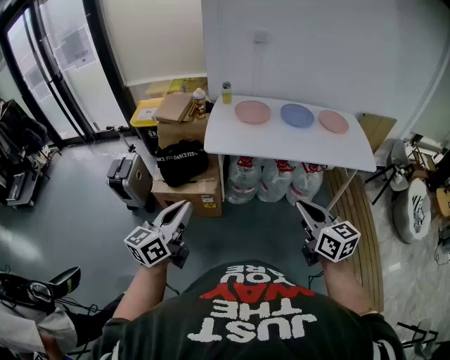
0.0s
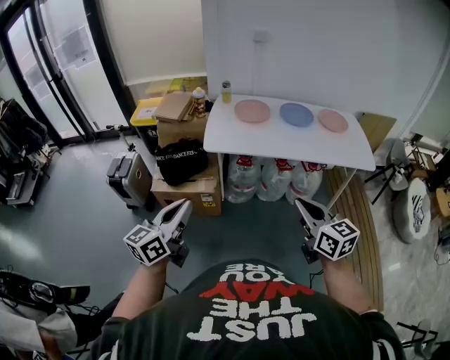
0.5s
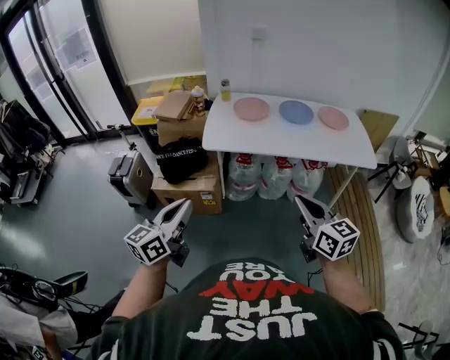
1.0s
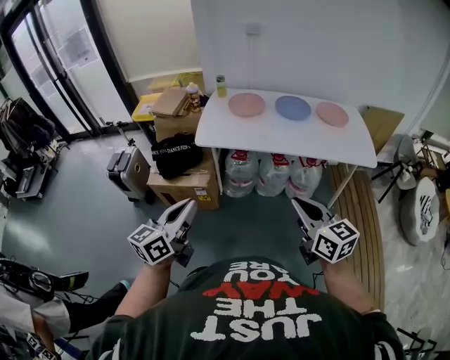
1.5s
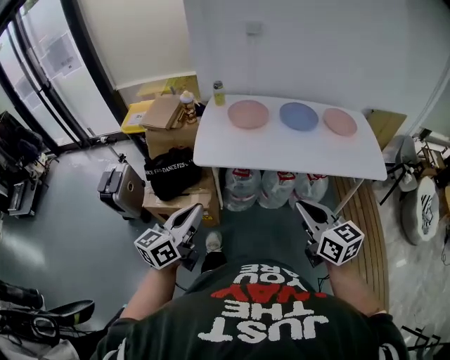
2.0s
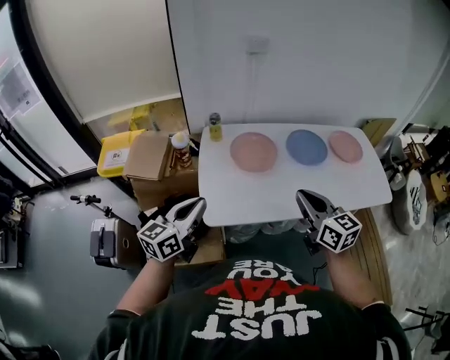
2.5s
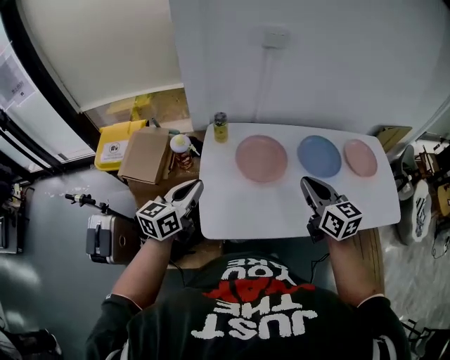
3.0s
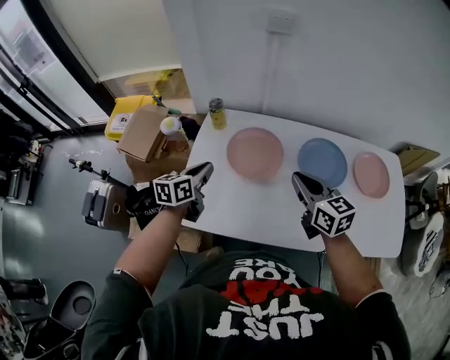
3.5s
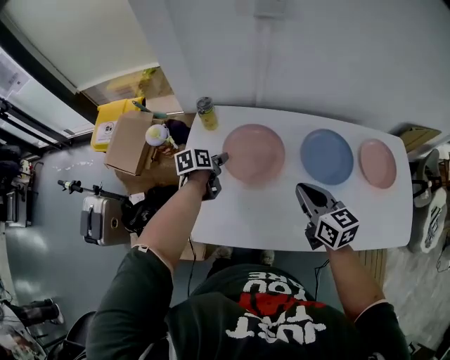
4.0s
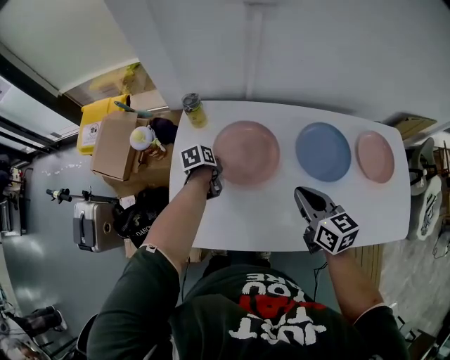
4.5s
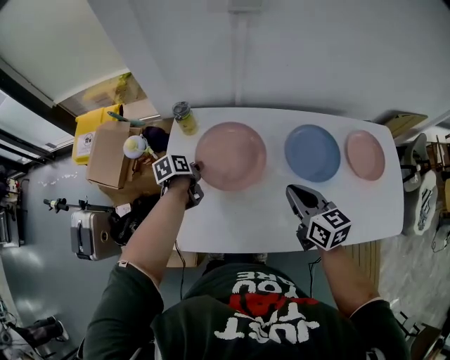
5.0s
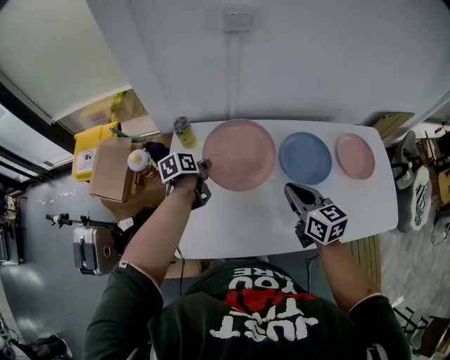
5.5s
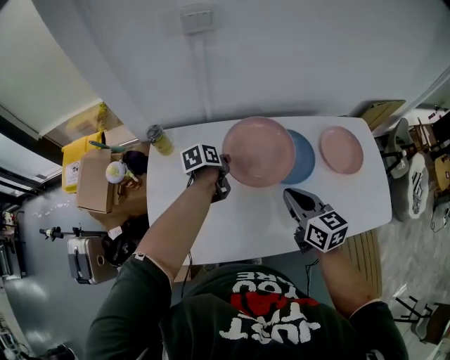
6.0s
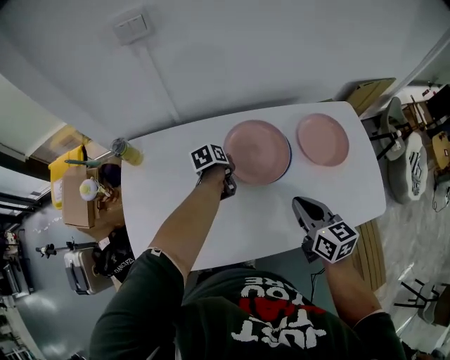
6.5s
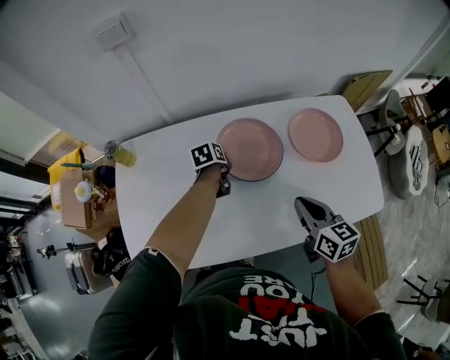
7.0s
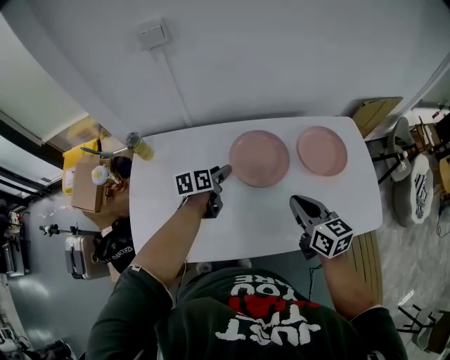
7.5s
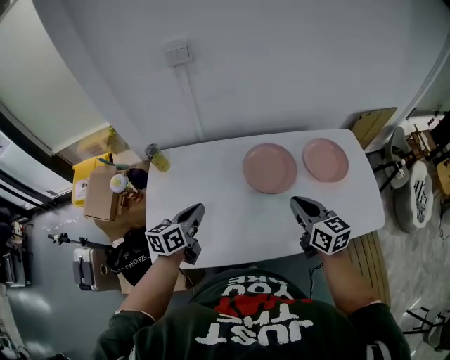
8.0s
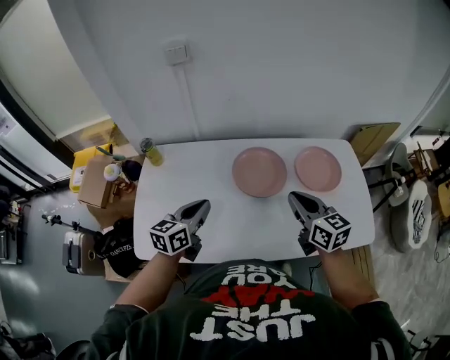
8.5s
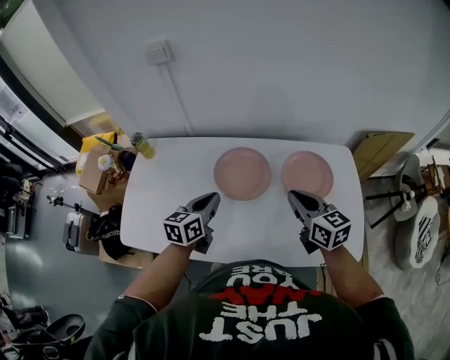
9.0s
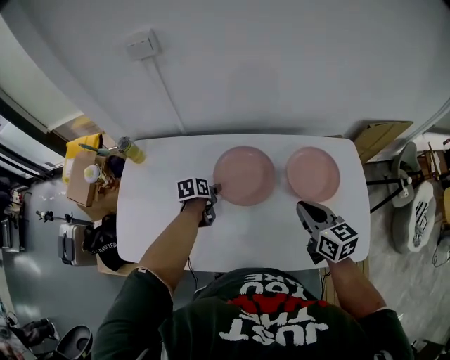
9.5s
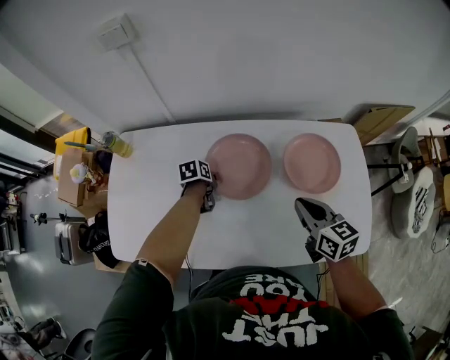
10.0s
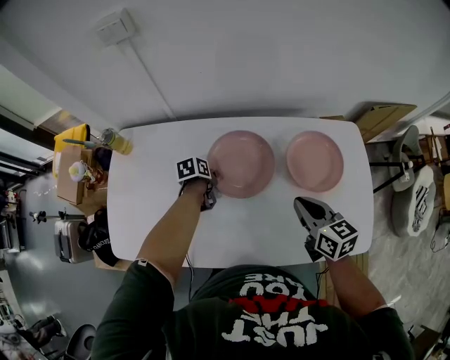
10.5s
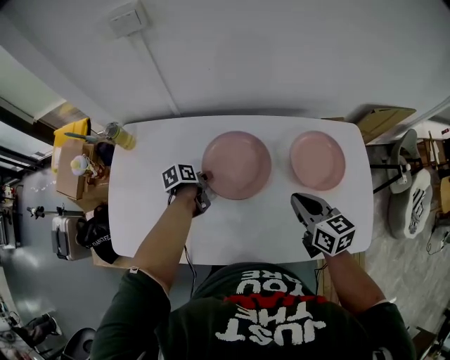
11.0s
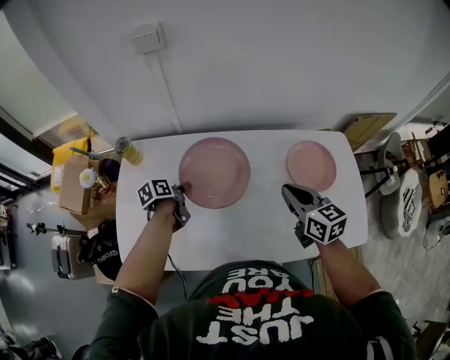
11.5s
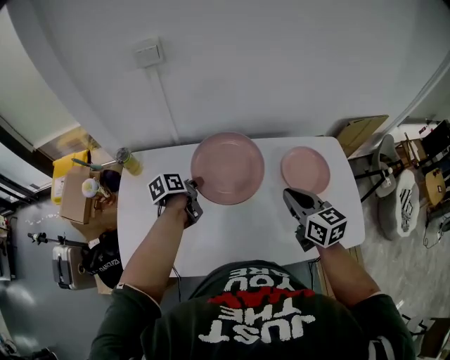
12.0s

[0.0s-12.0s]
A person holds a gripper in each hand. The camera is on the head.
0.0s to 2.0s: The left gripper heads forward and to the right, covering about 15 cm. Meanwhile the right gripper travels forward by roughly 15 cm.
2.0s to 4.0s: The two grippers travel together, forward, roughly 60 cm. The left gripper moves downward, about 25 cm, tilts its fingers roughly 40 degrees downward, and opens up.
4.0s to 6.0s: The right gripper is displaced to the right by about 10 cm. The left gripper travels to the right by some 15 cm.
6.0s to 8.0s: The left gripper moves backward and upward, approximately 20 cm, rotates about 30 degrees, and opens, then closes once more; the right gripper heads to the right, covering about 10 cm.
8.0s to 10.0s: The right gripper shifts approximately 20 cm to the right and forward, while the left gripper goes about 30 cm downward, to the right and forward, points its fingers about 40 degrees further downward, and opens up.
10.0s to 12.0s: The right gripper is displaced to the left and upward by some 10 cm. The left gripper shifts some 15 cm upward and to the left, and swivels approximately 30 degrees.

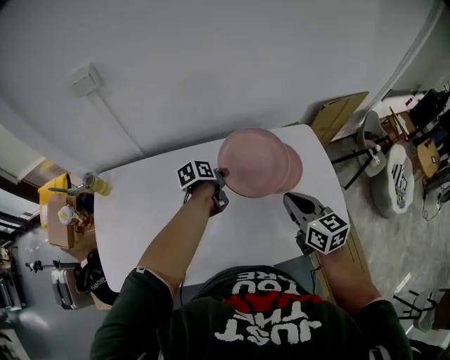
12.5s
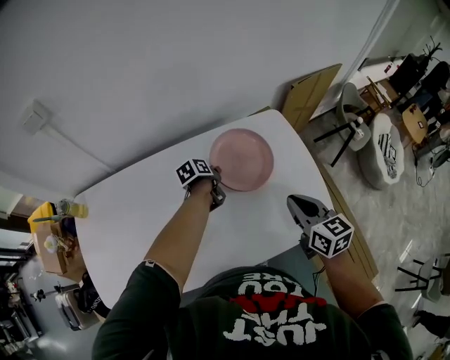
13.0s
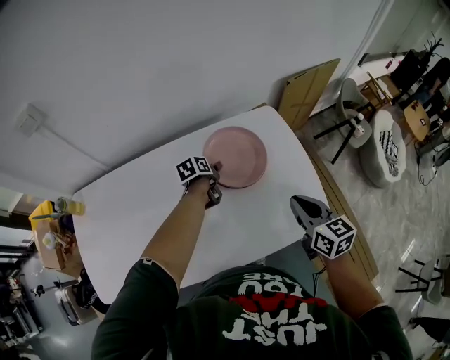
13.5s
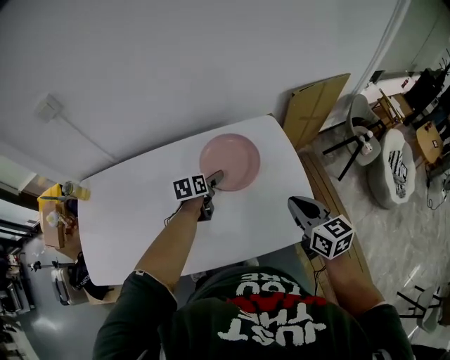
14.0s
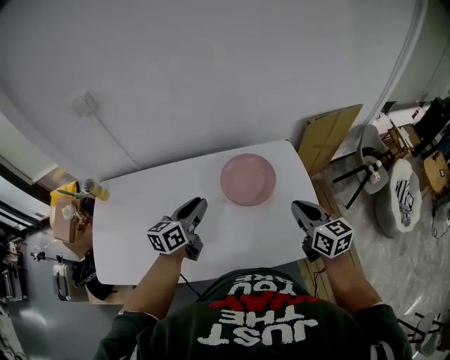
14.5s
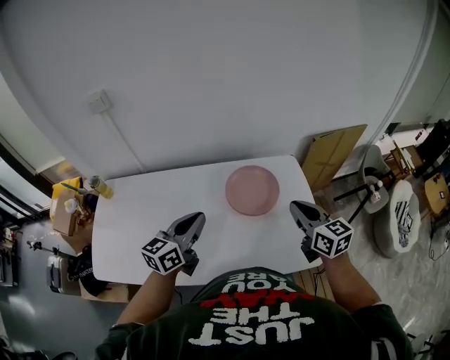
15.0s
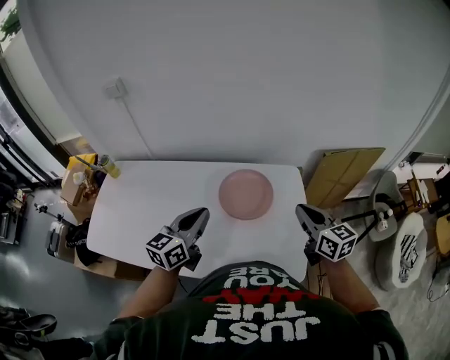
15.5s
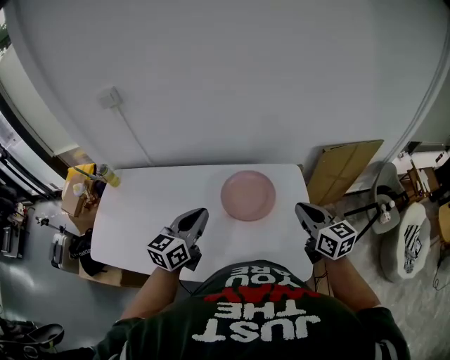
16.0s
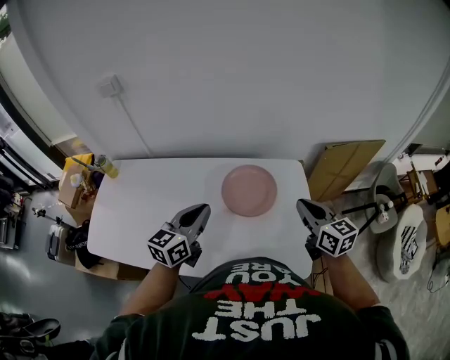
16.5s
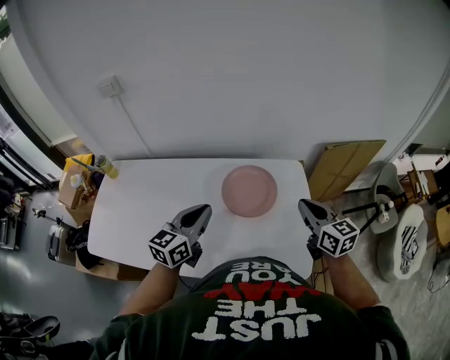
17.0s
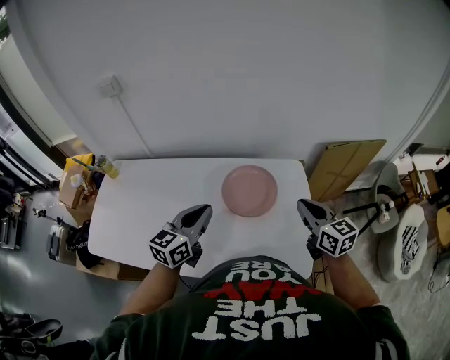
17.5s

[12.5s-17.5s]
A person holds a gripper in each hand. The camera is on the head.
12.5s to 15.0s: The left gripper shifts about 25 cm upward and backward, angles its fingers upward, by some 30 degrees, and opens and closes again. The right gripper is displaced to the right by approximately 15 cm.
15.0s to 17.5s: The two grippers go about 5 cm to the right.

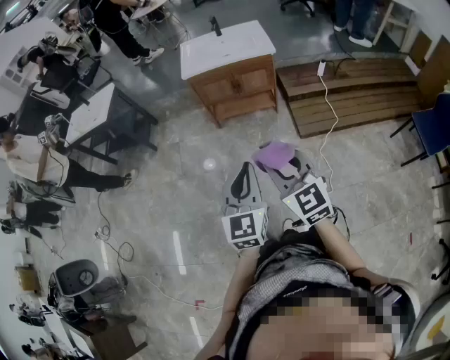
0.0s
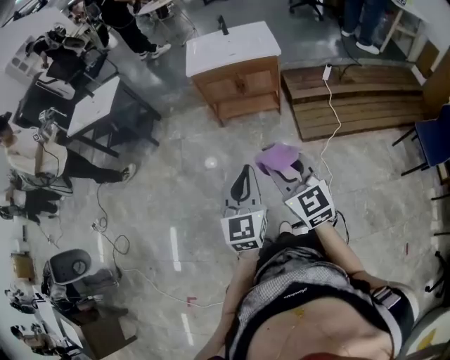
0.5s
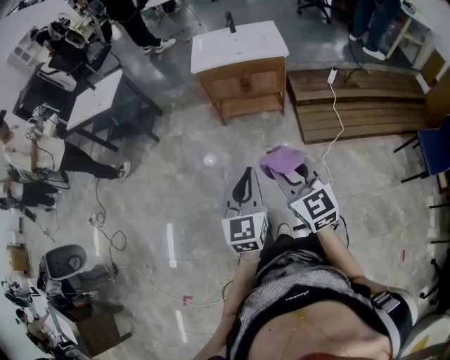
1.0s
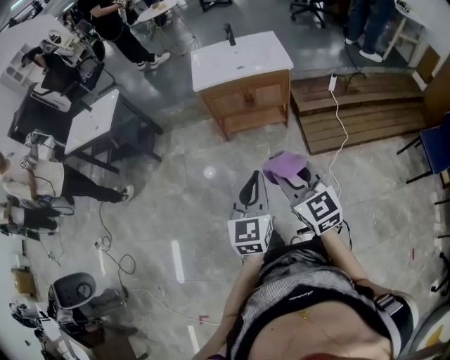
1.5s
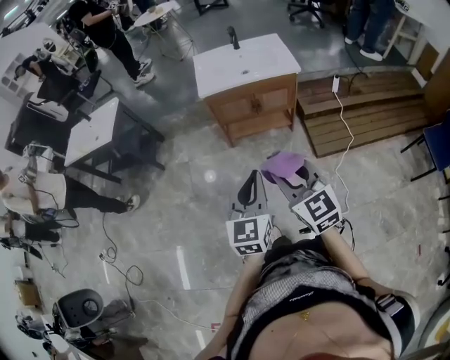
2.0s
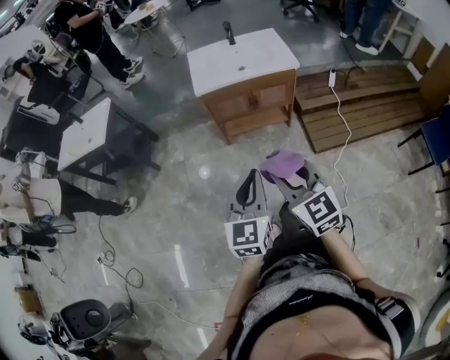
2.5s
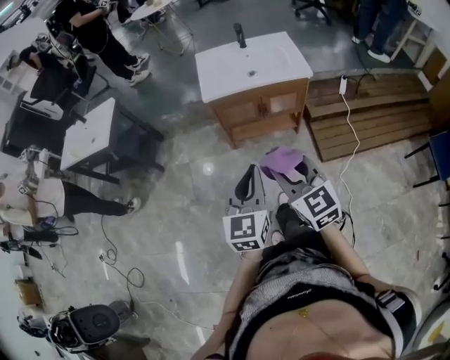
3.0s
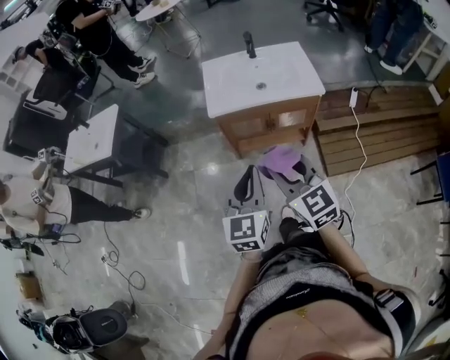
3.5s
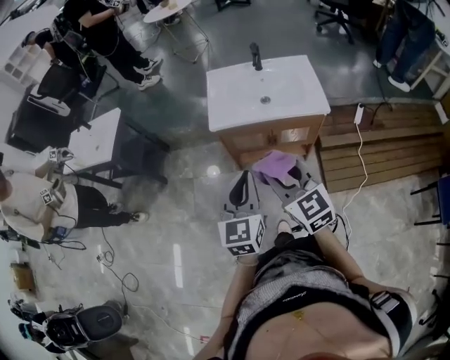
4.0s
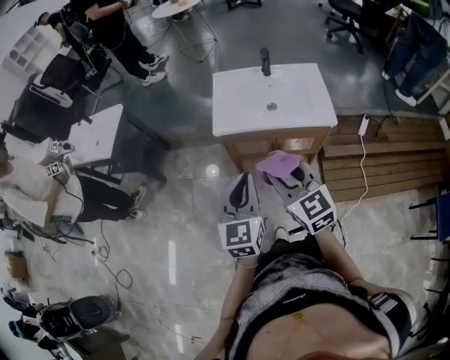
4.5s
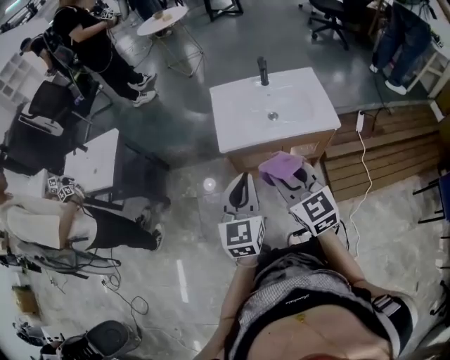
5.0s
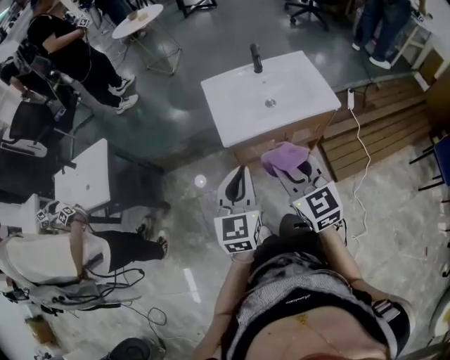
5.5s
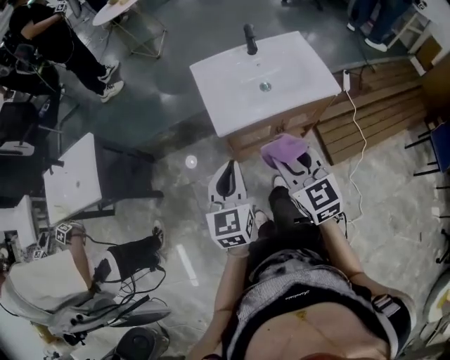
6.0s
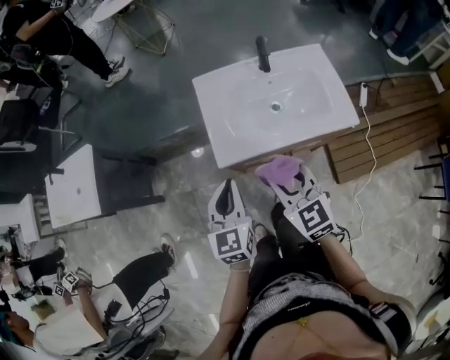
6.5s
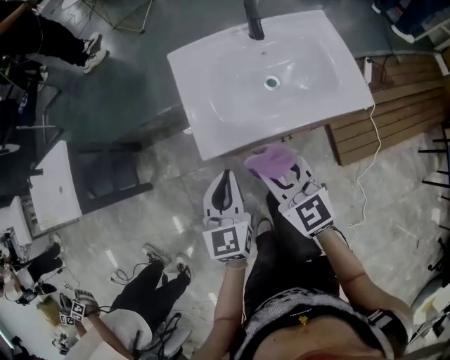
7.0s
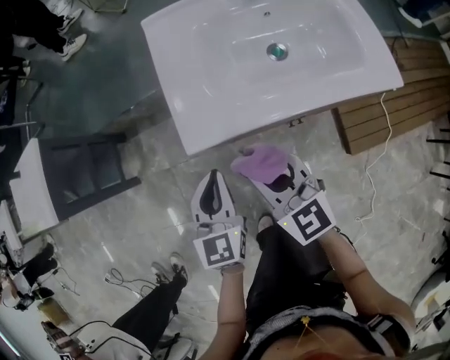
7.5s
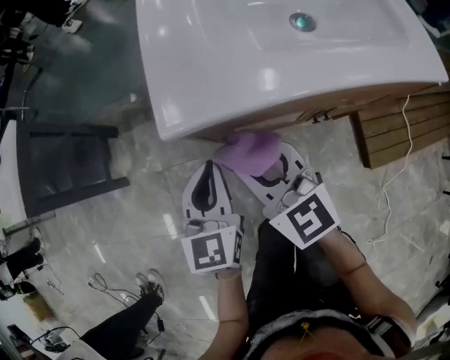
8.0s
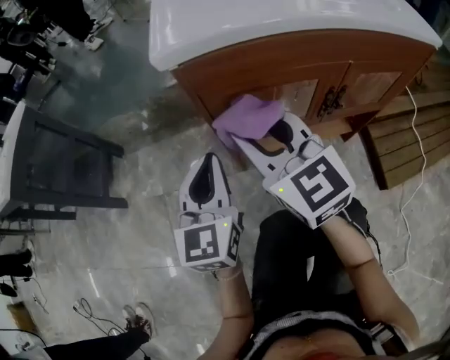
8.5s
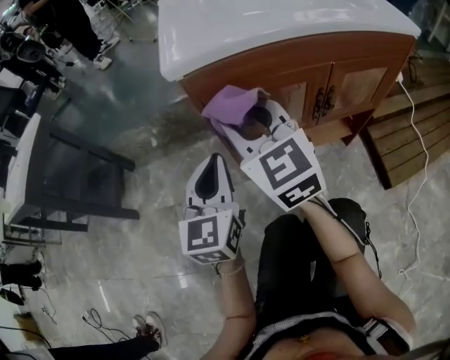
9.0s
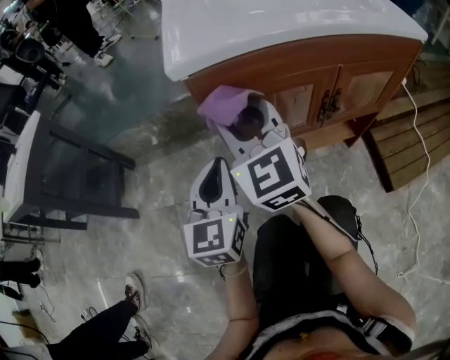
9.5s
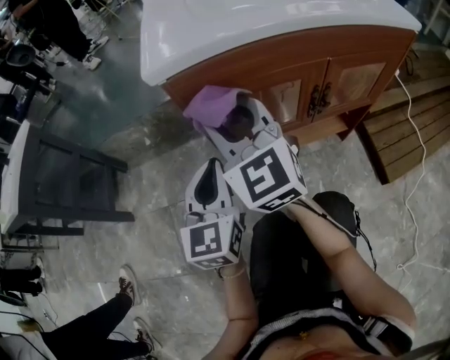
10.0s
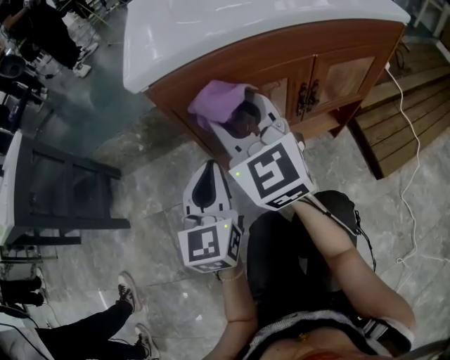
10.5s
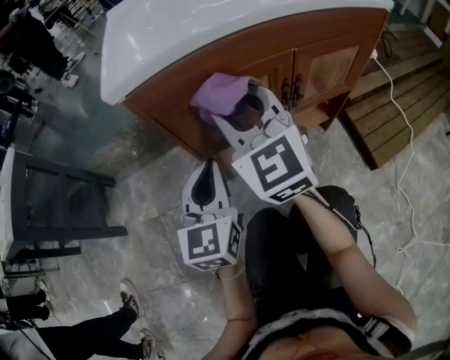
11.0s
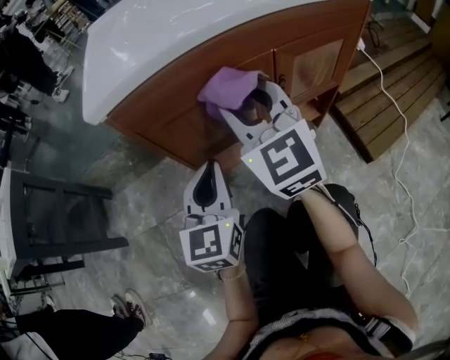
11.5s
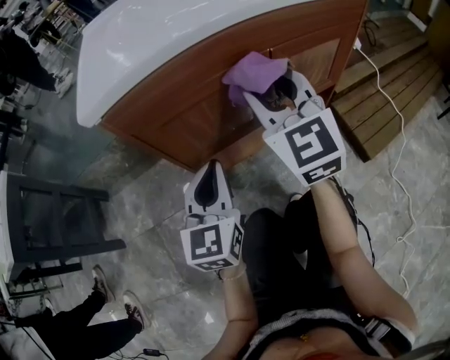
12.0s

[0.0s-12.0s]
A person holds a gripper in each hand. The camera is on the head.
0.0s to 2.0s: The two grippers go approximately 20 cm forward and to the left.
2.0s to 4.0s: The grippers both shift forward by some 30 cm.
4.0s to 6.0s: The two grippers go some 20 cm forward and to the left. The right gripper swivels about 20 degrees.
6.0s to 8.0s: Both grippers move downward, about 35 cm. The right gripper turns by about 20 degrees.
8.0s to 10.0s: The right gripper rotates roughly 20 degrees; the left gripper moves downward, roughly 5 cm.
10.0s to 12.0s: The right gripper is displaced to the right by some 20 cm; the left gripper heads to the right, covering approximately 10 cm.
